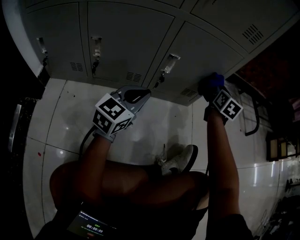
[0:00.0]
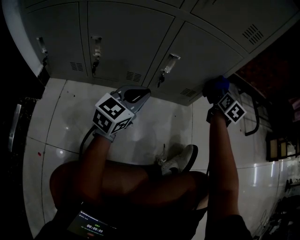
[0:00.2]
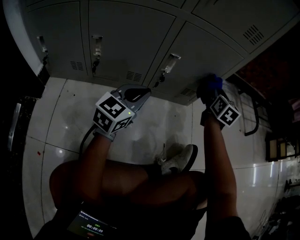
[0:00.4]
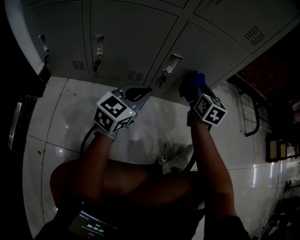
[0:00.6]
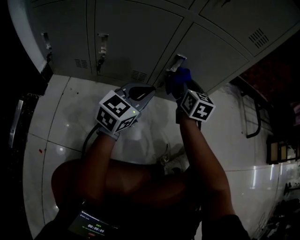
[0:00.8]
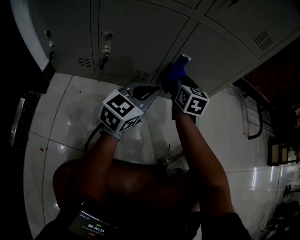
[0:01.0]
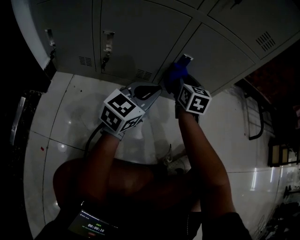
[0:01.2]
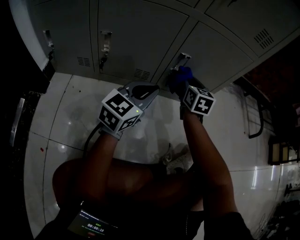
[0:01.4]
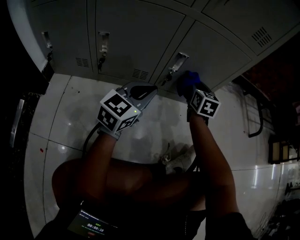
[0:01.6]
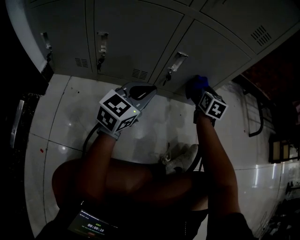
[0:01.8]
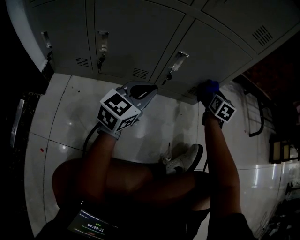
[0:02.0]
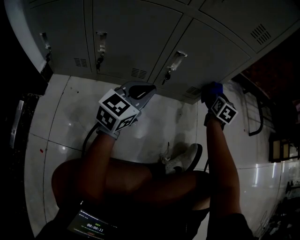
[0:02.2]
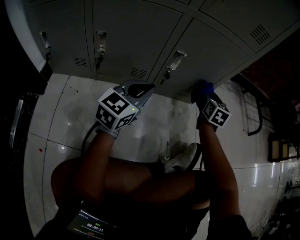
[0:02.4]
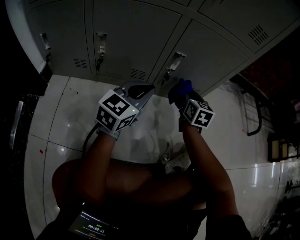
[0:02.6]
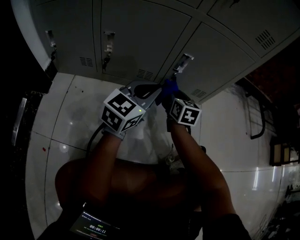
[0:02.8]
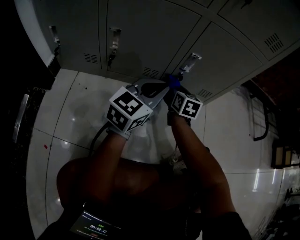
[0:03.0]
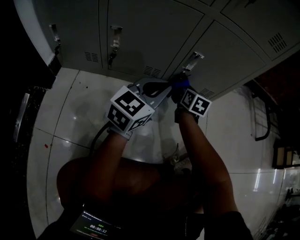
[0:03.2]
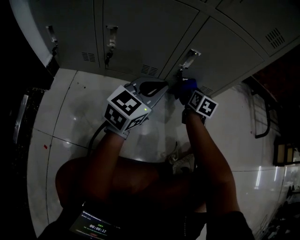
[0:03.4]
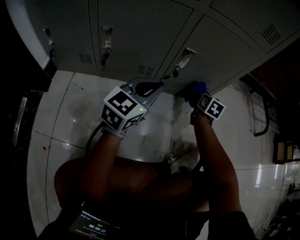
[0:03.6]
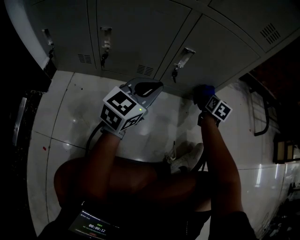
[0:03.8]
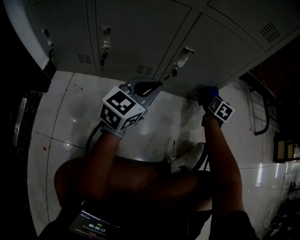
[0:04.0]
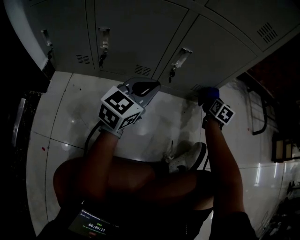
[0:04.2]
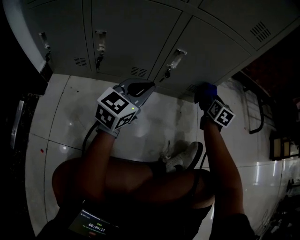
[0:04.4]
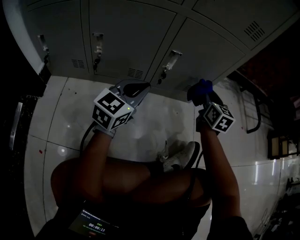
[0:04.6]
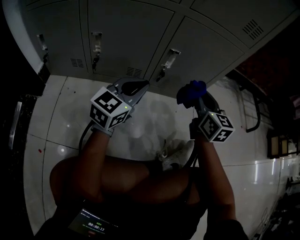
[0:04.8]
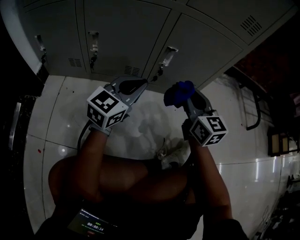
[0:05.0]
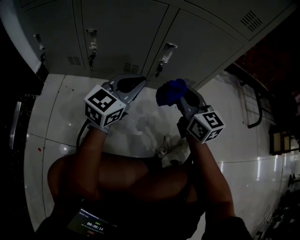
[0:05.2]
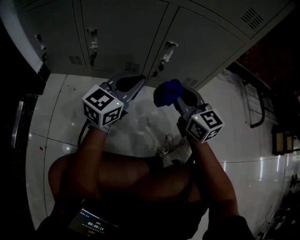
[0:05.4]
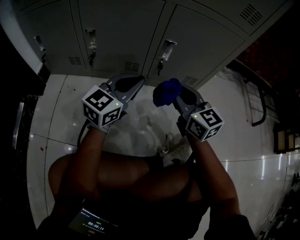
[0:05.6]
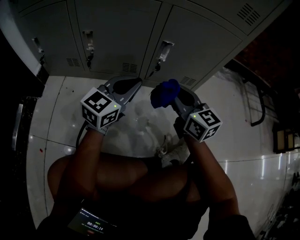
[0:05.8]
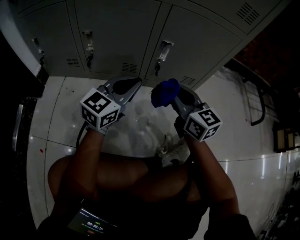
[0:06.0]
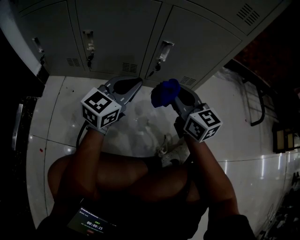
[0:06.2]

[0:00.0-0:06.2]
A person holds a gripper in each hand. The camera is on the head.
0:00.0 to 0:01.6: The right gripper travels to the left and downward by some 15 cm.
0:01.6 to 0:03.2: The right gripper goes approximately 10 cm downward, and travels to the right and back again, approximately 15 cm each way.
0:03.2 to 0:04.6: The right gripper is displaced to the right and upward by some 20 cm.
0:04.6 to 0:06.2: The right gripper goes roughly 15 cm to the left and backward, and swivels about 30 degrees.

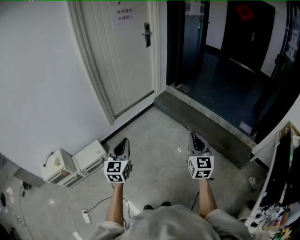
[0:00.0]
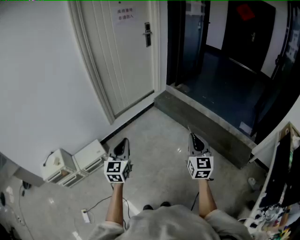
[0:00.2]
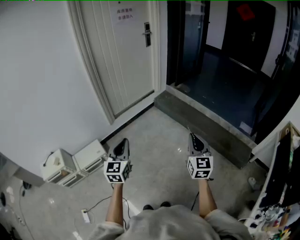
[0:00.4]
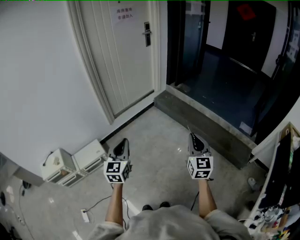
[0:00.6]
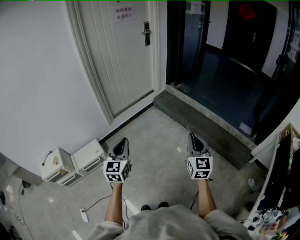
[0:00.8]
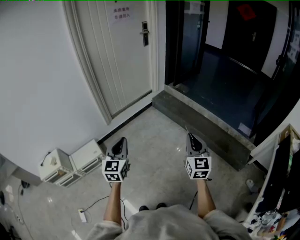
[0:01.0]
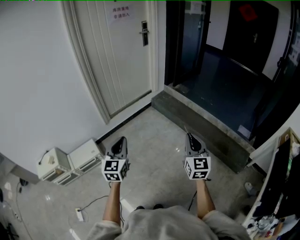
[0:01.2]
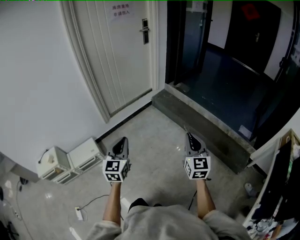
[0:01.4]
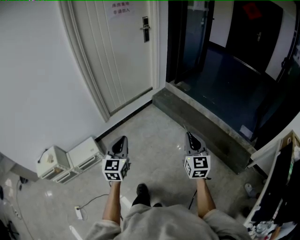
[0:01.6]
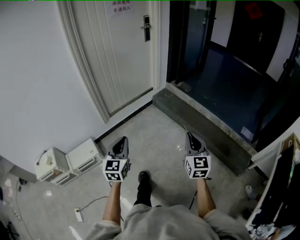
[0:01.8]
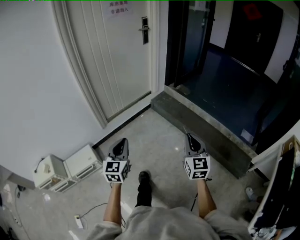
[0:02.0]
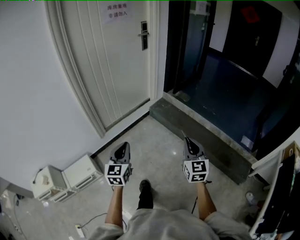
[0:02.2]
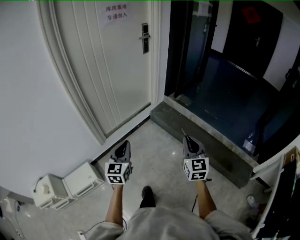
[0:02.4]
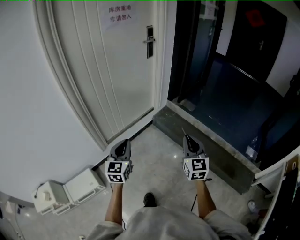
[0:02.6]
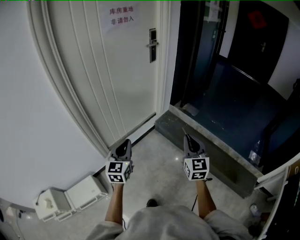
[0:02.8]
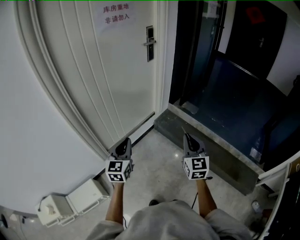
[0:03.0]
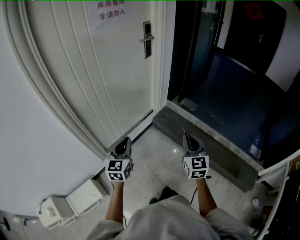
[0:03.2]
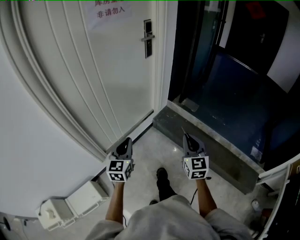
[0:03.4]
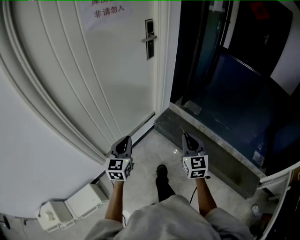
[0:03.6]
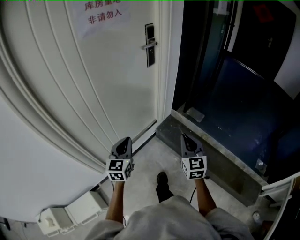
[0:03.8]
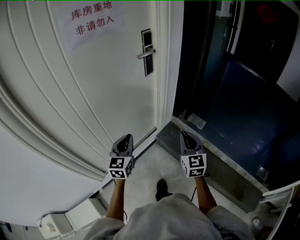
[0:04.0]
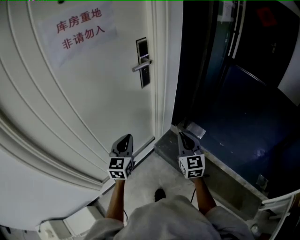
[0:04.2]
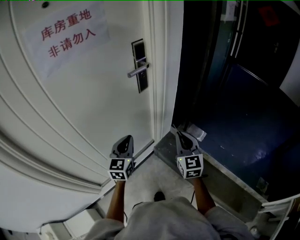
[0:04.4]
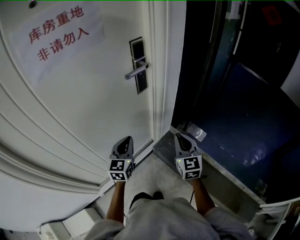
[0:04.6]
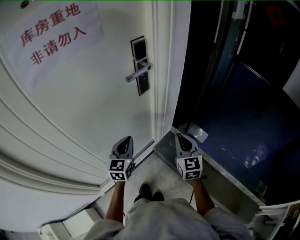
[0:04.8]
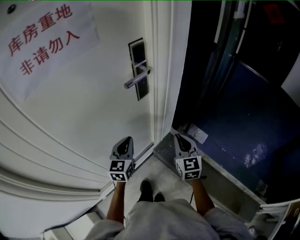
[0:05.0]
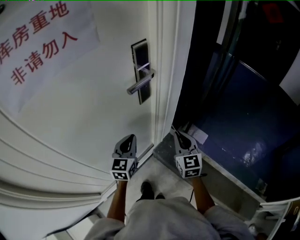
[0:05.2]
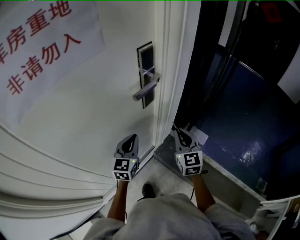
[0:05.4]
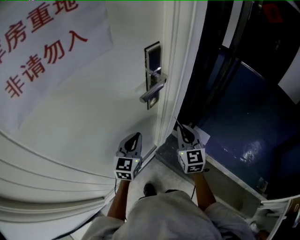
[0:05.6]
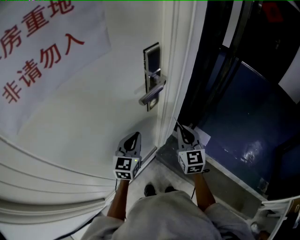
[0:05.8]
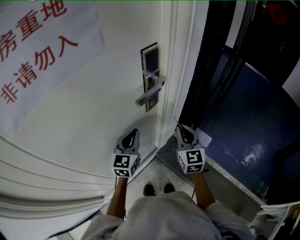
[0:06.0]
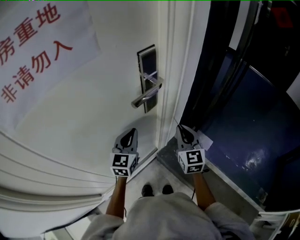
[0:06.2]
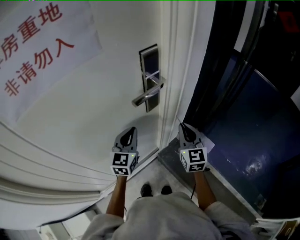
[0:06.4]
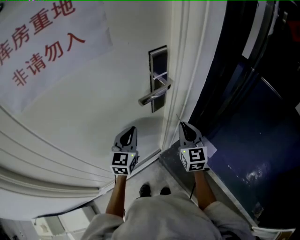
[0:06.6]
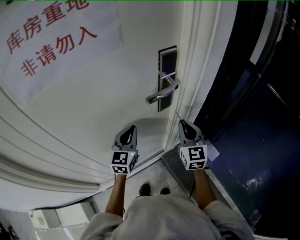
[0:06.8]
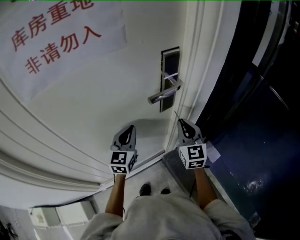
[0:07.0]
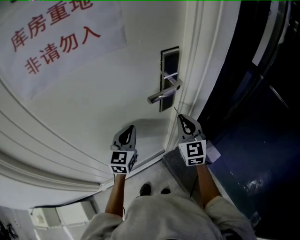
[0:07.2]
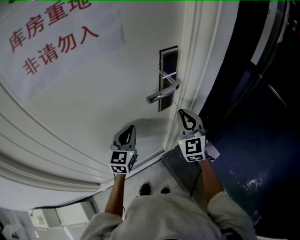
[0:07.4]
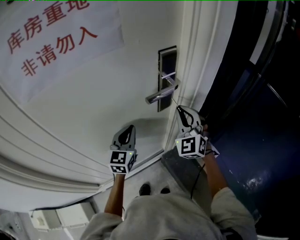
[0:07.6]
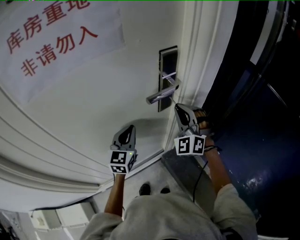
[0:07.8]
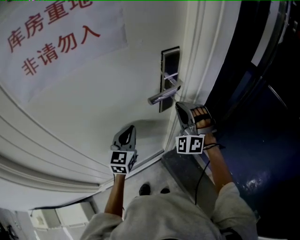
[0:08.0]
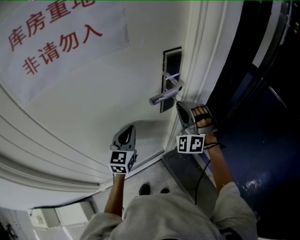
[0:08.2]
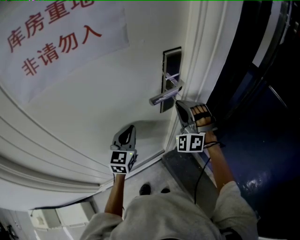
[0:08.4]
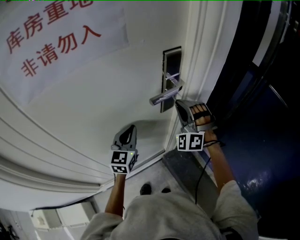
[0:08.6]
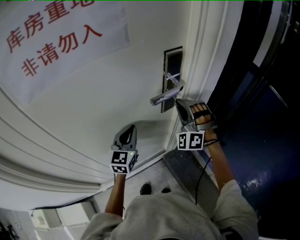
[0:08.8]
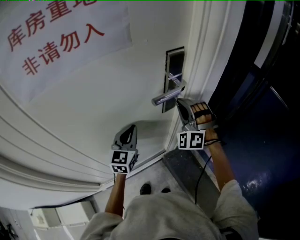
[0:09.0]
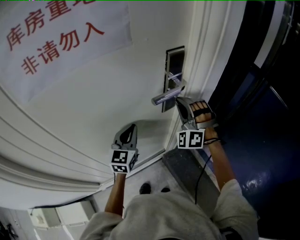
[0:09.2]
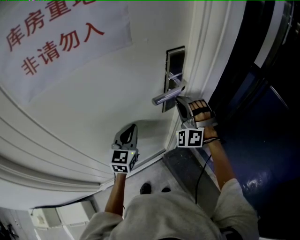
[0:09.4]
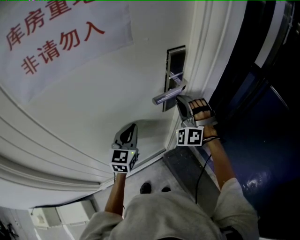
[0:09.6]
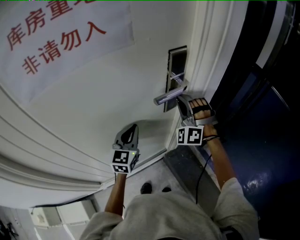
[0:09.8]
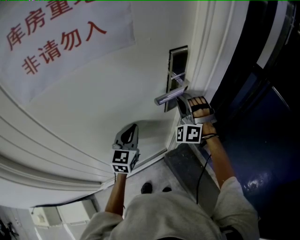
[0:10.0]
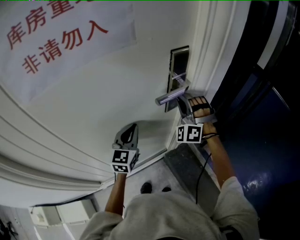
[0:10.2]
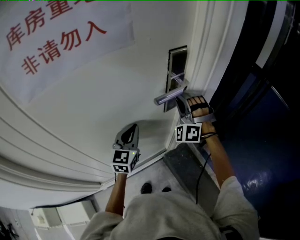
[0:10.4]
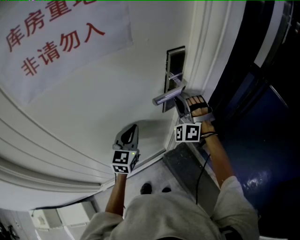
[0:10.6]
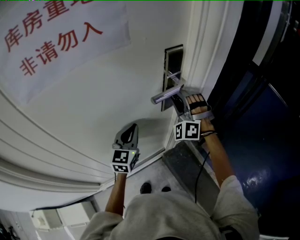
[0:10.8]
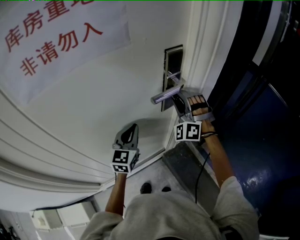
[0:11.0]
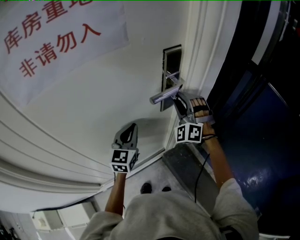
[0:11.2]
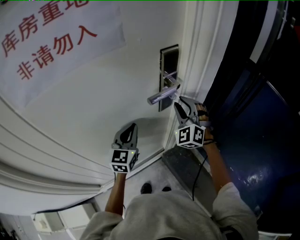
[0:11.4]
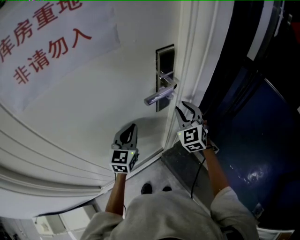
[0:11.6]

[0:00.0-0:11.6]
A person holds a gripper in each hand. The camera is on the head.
0:00.0 to 0:01.4: The left gripper heads to the right and forward, covering approximately 10 cm, while the right gripper heads forward, covering some 5 cm.
0:01.4 to 0:02.8: The two grippers travel together, forward, about 50 cm.
0:02.8 to 0:04.4: The pair of grippers is taken forward, about 50 cm.
0:04.4 to 0:05.8: Both grippers move forward, approximately 20 cm.
0:05.8 to 0:07.2: The left gripper turns by approximately 20 degrees; the right gripper shifts about 5 cm forward, and swivels about 20 degrees.
0:07.2 to 0:08.8: The right gripper travels forward by approximately 5 cm, and rotates around the line of its fingers by roughly 70 degrees, counterclockwise from behind.
0:08.8 to 0:10.2: The grippers move only a little.
0:10.2 to 0:11.6: The right gripper moves to the right, about 5 cm, rolls clockwise, seen from behind, by some 50 degrees, and opens its fingers.

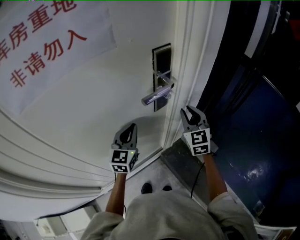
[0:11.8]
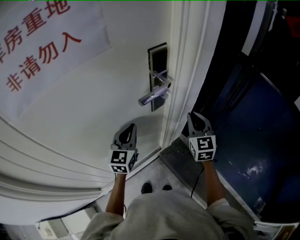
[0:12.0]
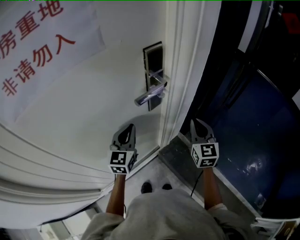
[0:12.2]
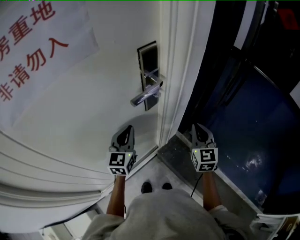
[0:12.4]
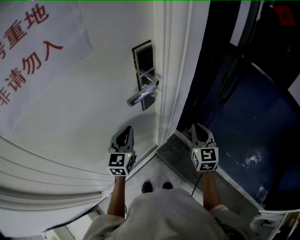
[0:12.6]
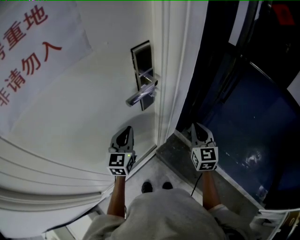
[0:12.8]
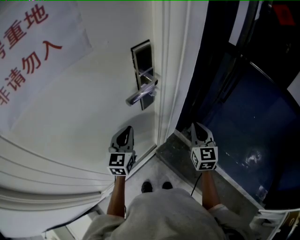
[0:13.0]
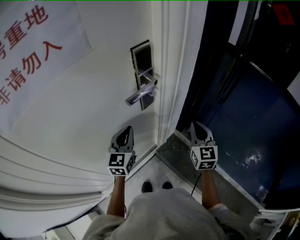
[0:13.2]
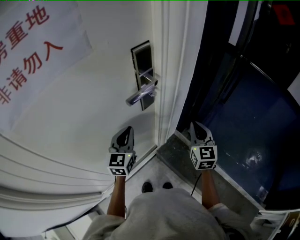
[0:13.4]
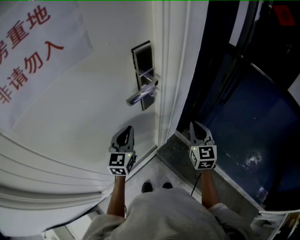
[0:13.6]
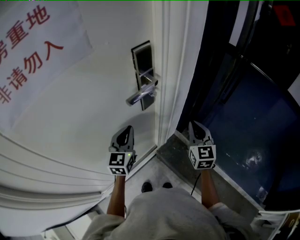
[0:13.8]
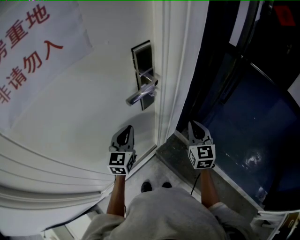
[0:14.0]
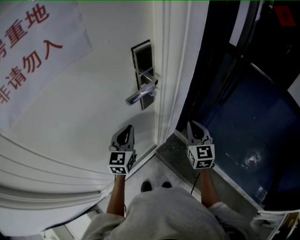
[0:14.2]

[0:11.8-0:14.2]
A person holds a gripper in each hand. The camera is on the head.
0:11.8 to 0:13.0: The right gripper heads to the right and backward, covering some 10 cm.
0:13.0 to 0:14.2: The grippers make only small movements.

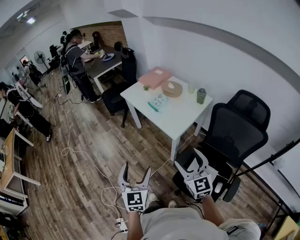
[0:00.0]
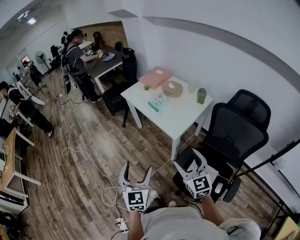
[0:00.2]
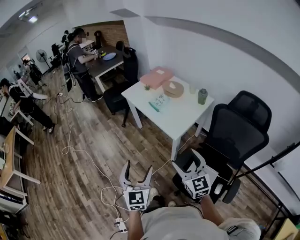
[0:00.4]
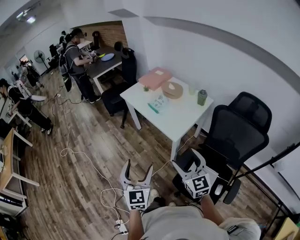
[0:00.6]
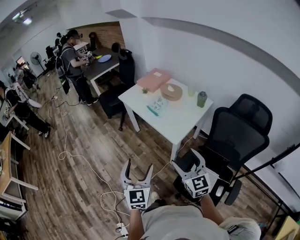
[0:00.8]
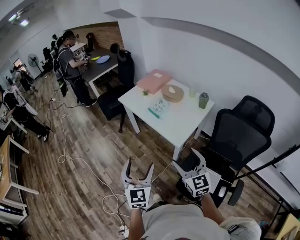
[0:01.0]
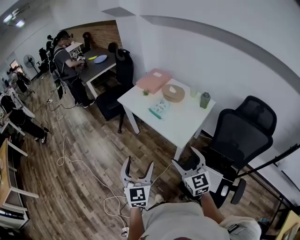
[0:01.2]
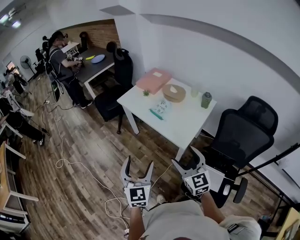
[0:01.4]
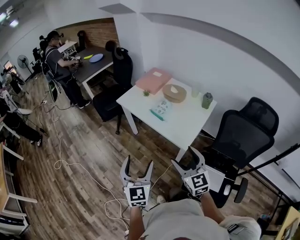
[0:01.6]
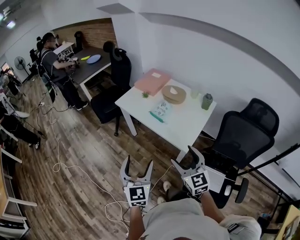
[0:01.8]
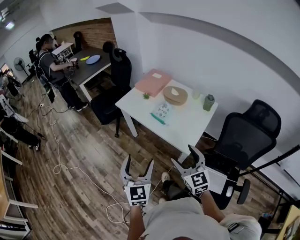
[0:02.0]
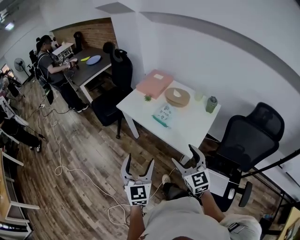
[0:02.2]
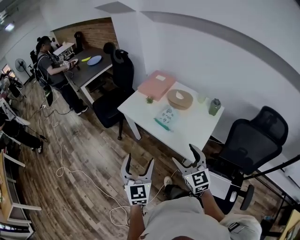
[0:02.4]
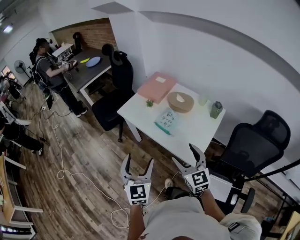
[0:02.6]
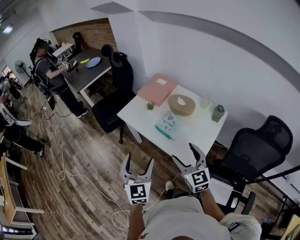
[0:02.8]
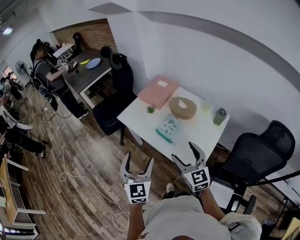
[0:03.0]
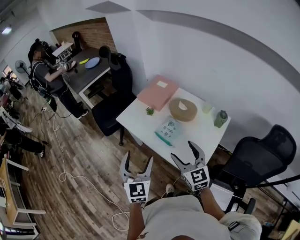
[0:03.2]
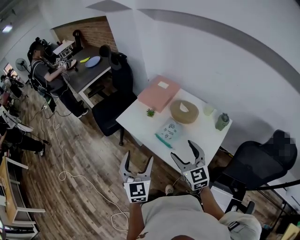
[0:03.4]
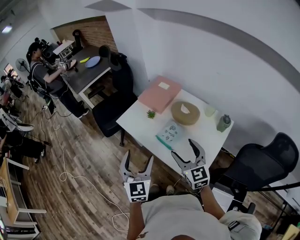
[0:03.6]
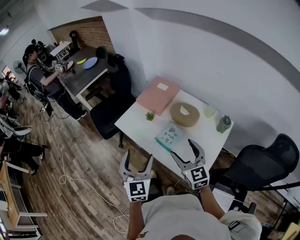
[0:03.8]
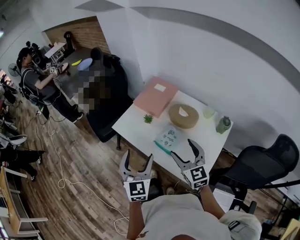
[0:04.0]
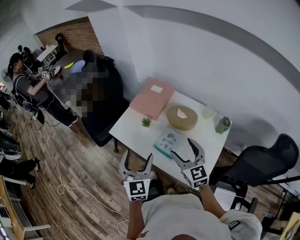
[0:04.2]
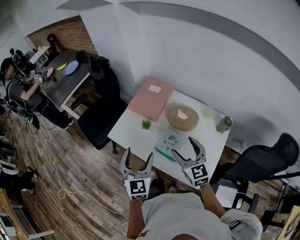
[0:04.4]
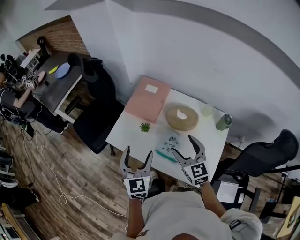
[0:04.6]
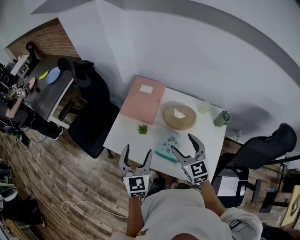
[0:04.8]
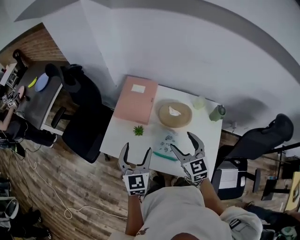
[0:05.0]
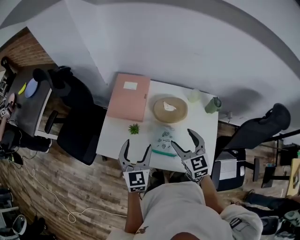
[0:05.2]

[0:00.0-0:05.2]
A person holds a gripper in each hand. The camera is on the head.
0:00.0 to 0:01.8: The right gripper moves forward and to the left, some 20 cm; the left gripper goes roughly 20 cm forward.
0:01.8 to 0:03.4: The grippers both shift forward by approximately 25 cm.
0:03.4 to 0:05.2: The left gripper changes place by approximately 30 cm, and swivels roughly 30 degrees, while the right gripper shifts by about 20 cm, and changes its angle by about 30 degrees.
